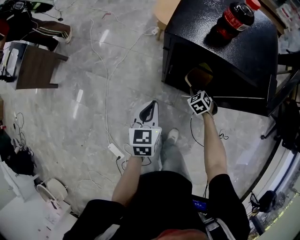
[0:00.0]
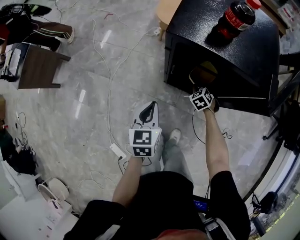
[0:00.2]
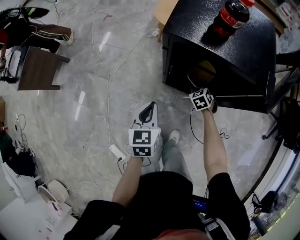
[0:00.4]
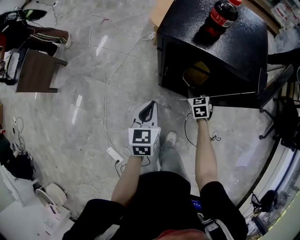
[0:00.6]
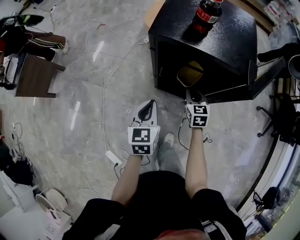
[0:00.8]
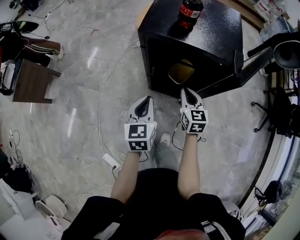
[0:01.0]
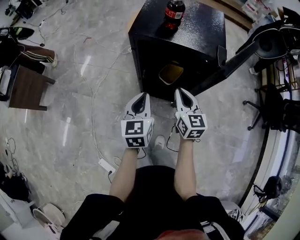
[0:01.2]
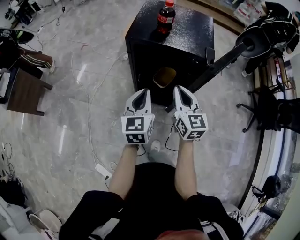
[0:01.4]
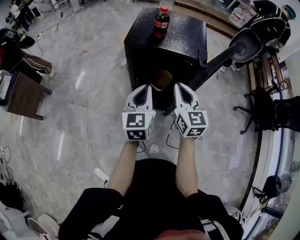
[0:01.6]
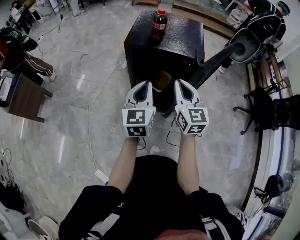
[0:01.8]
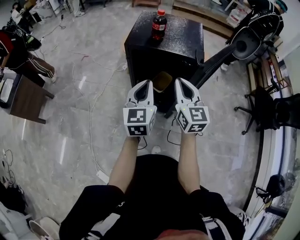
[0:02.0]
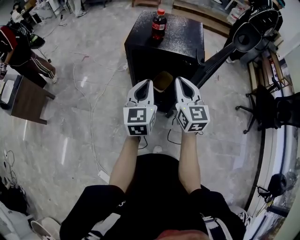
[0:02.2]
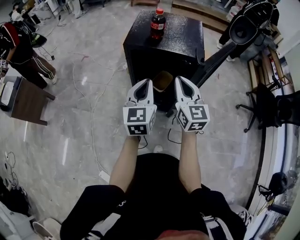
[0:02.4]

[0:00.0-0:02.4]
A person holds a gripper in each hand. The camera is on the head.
0:00.0 to 0:01.2: The right gripper heads upward, covering some 30 cm, points its fingers about 40 degrees further upward, and opens, then closes once more. The left gripper heads upward and to the right, covering roughly 10 cm.
0:01.2 to 0:02.4: The grippers both shift upward by approximately 10 cm.

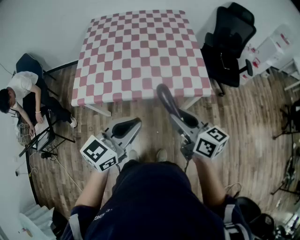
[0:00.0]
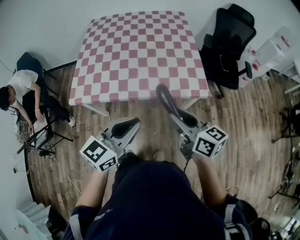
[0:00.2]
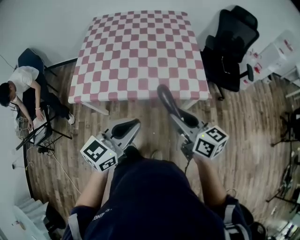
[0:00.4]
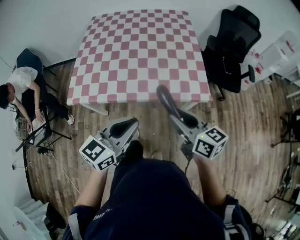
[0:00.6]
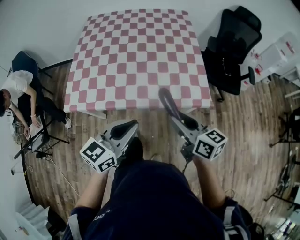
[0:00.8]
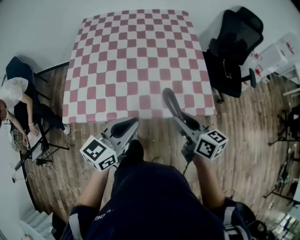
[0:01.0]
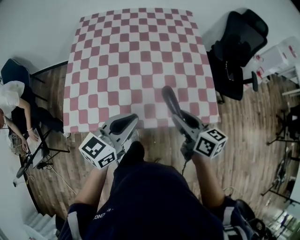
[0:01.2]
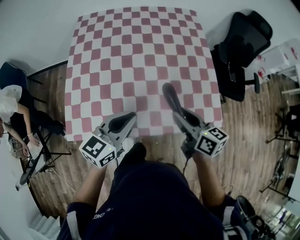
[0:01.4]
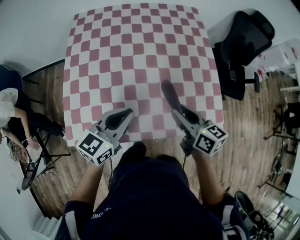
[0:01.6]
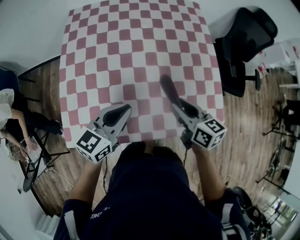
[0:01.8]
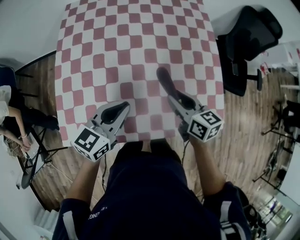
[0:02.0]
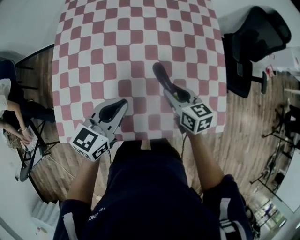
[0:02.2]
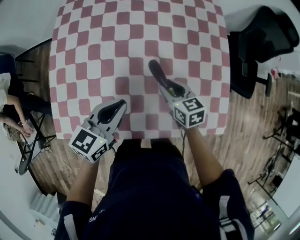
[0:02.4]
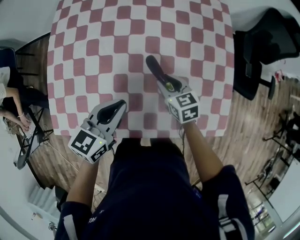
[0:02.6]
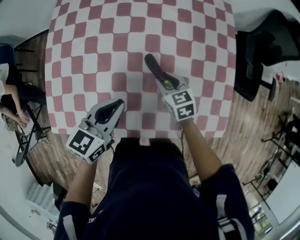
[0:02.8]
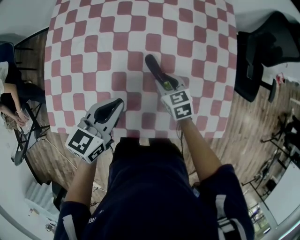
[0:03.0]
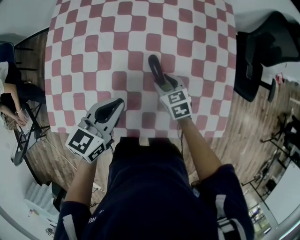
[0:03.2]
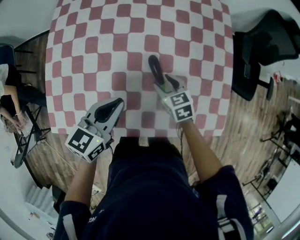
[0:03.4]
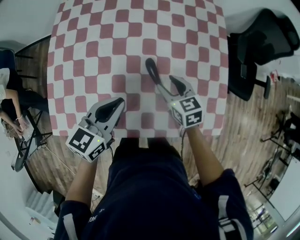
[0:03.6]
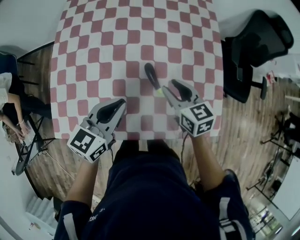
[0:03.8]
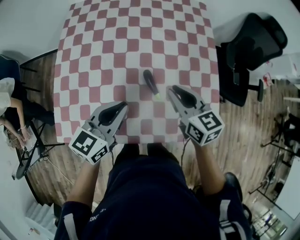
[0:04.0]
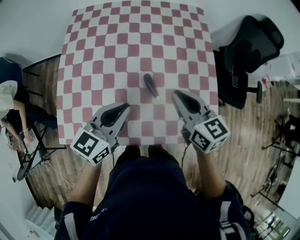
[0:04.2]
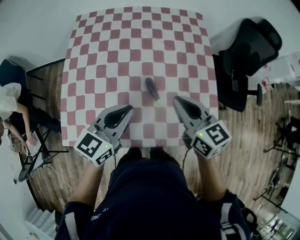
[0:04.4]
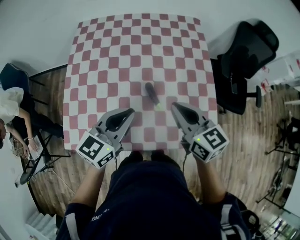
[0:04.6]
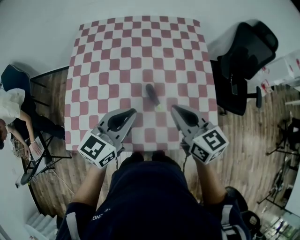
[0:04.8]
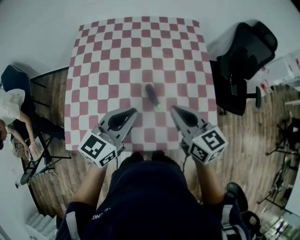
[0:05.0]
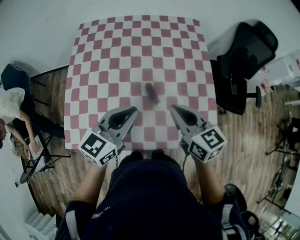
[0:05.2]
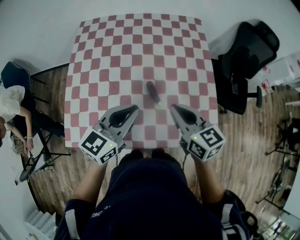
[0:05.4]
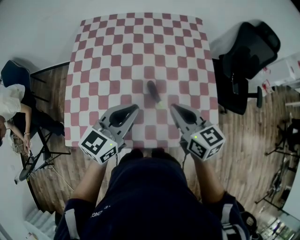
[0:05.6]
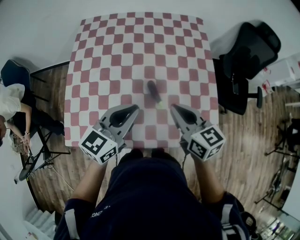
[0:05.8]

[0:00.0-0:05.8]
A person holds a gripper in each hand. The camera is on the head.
0:00.0 to 0:01.4: The left gripper is displaced forward and to the left by approximately 15 cm. Meanwhile the right gripper shifts approximately 15 cm forward, downward and to the left.
0:01.4 to 0:02.8: The right gripper shifts approximately 30 cm downward and forward, and changes its angle by about 40 degrees. Meanwhile the left gripper shifts about 15 cm downward and forward.
0:02.8 to 0:04.4: The right gripper travels upward by about 30 cm, changes its angle by some 30 degrees, and closes its fingers. The left gripper shifts approximately 15 cm upward.
0:04.4 to 0:05.8: There are only small adjustments of the grippers.

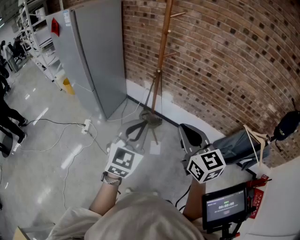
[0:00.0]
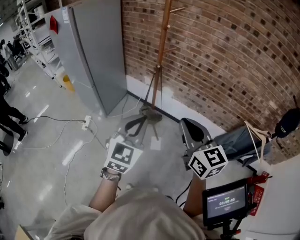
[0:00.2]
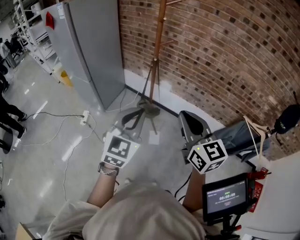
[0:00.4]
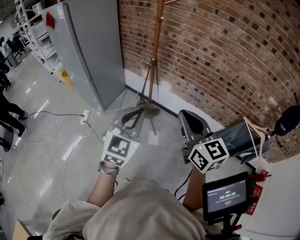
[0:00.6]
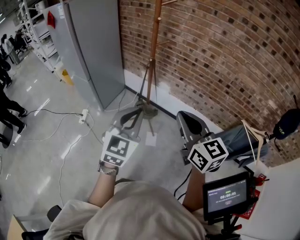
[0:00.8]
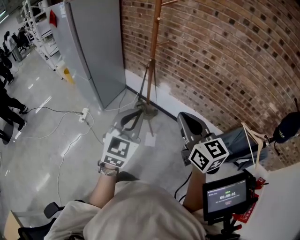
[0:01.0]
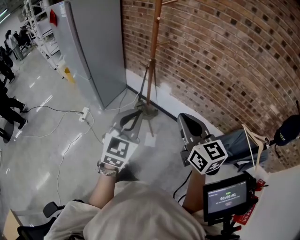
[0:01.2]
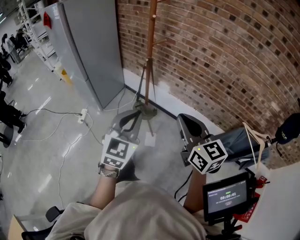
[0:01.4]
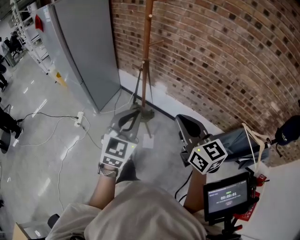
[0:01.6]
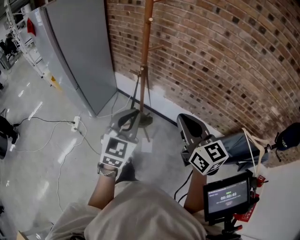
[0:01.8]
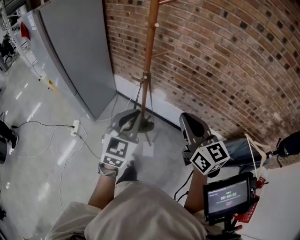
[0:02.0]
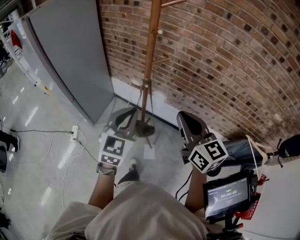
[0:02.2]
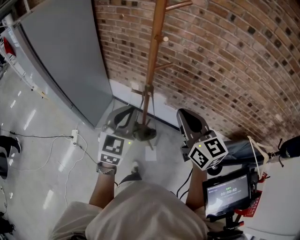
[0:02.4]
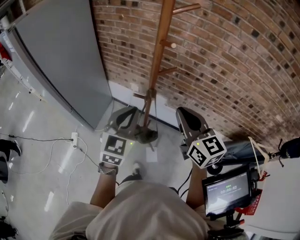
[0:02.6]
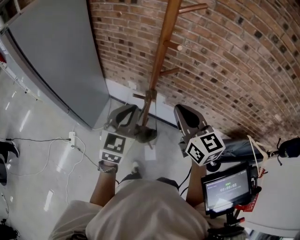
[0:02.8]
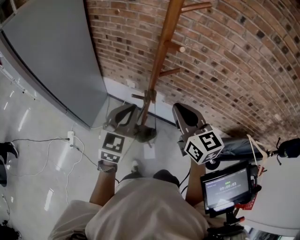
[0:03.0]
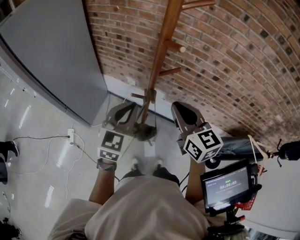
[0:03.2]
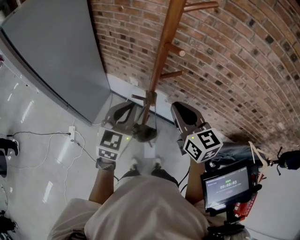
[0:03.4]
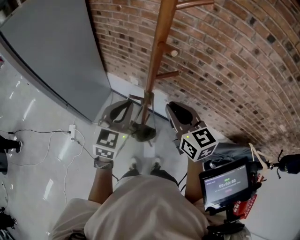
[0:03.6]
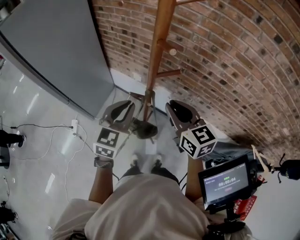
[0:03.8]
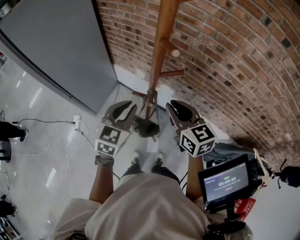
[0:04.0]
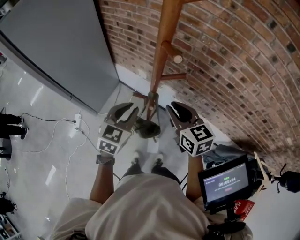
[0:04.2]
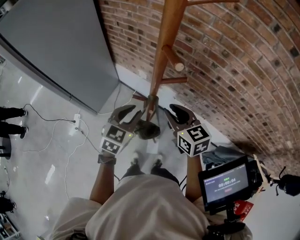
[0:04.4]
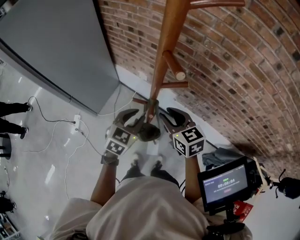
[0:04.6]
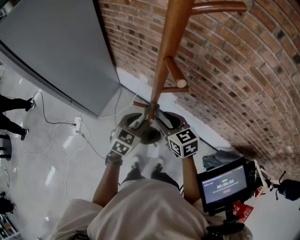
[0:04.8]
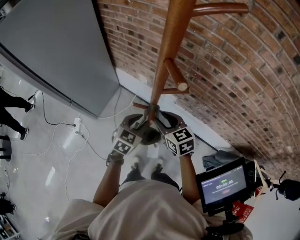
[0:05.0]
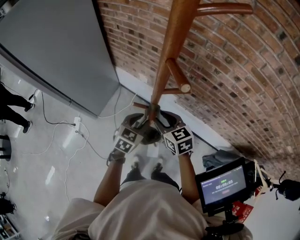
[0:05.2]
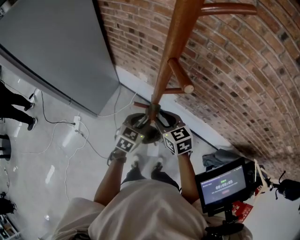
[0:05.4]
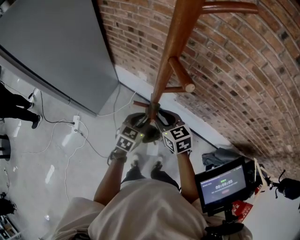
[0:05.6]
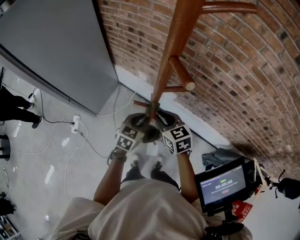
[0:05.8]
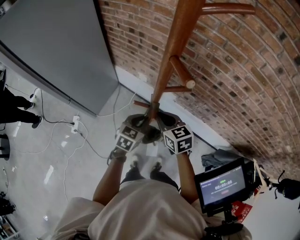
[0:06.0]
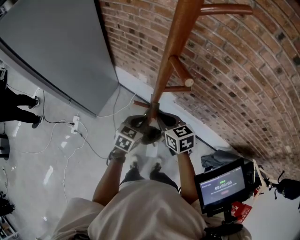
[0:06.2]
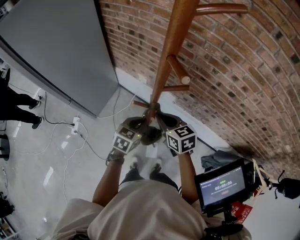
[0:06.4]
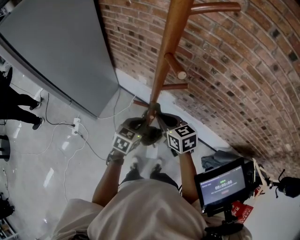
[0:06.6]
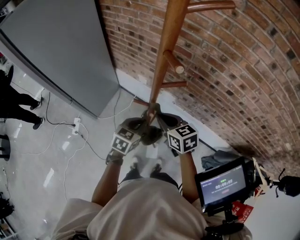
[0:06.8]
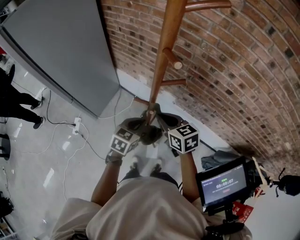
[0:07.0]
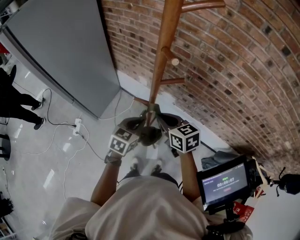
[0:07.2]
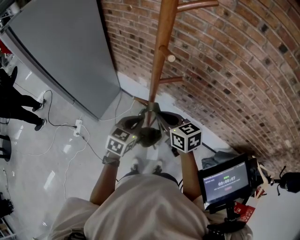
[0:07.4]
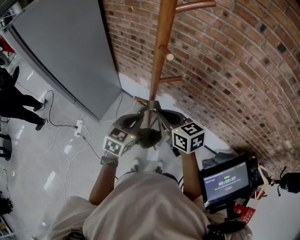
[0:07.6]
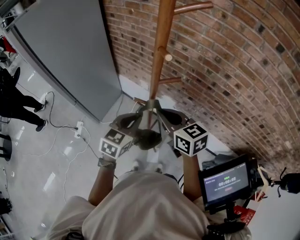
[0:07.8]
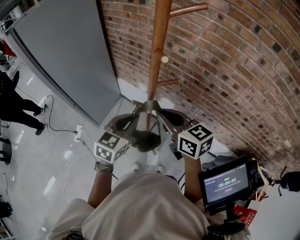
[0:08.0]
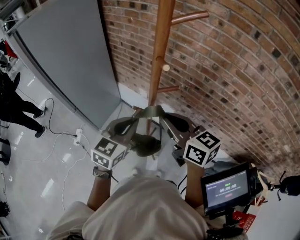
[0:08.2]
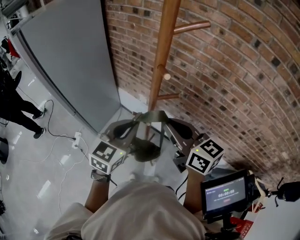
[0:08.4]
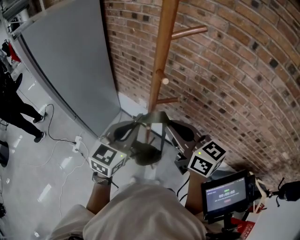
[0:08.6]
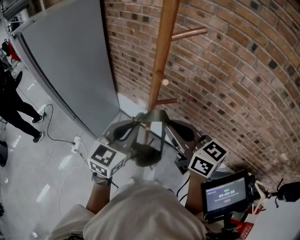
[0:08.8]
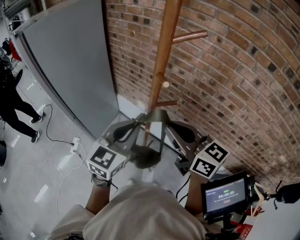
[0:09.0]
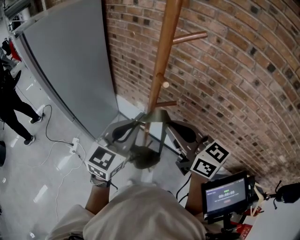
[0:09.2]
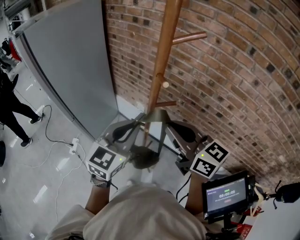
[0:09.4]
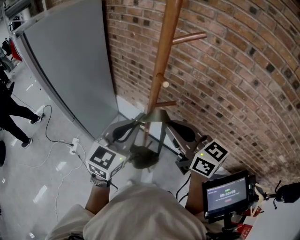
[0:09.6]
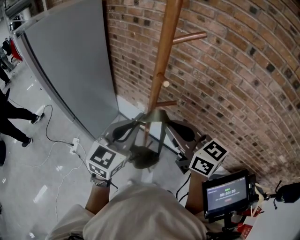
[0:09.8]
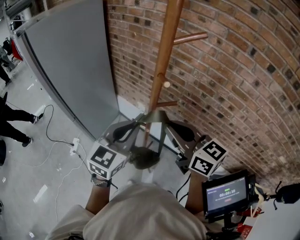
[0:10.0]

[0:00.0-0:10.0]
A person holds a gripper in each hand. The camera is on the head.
0:00.0 to 0:01.4: Both grippers move to the right, about 10 cm.
0:01.4 to 0:02.8: The grippers both shift forward by roughly 30 cm.
0:02.8 to 0:04.2: Both grippers travel together downward and forward, some 10 cm.
0:04.2 to 0:05.8: The grippers both shift downward by some 10 cm.
0:05.8 to 0:07.2: The left gripper ends up approximately 5 cm from where it was, while the right gripper changes place by some 5 cm.
0:07.2 to 0:08.6: The grippers both shift upward by roughly 20 cm. The left gripper turns by roughly 20 degrees. Meanwhile the right gripper swivels roughly 20 degrees.
0:08.6 to 0:10.0: The grippers make only small movements.

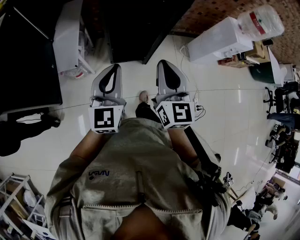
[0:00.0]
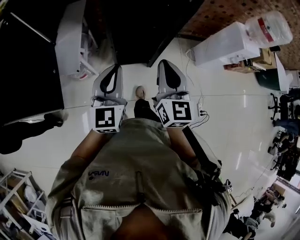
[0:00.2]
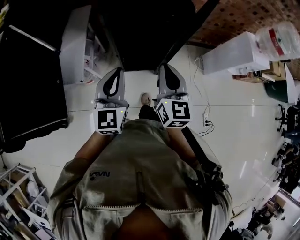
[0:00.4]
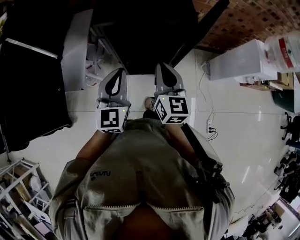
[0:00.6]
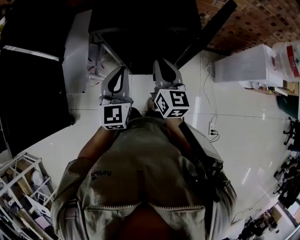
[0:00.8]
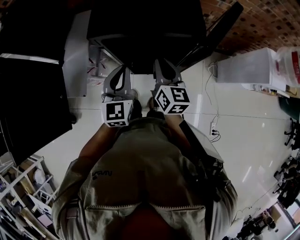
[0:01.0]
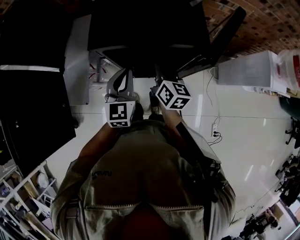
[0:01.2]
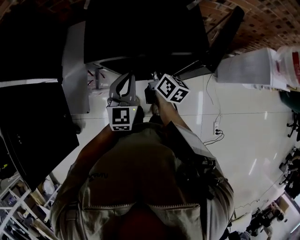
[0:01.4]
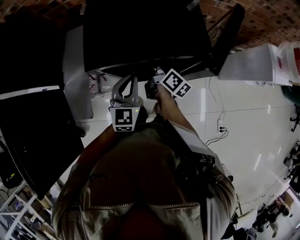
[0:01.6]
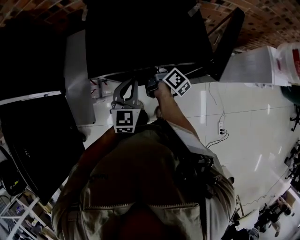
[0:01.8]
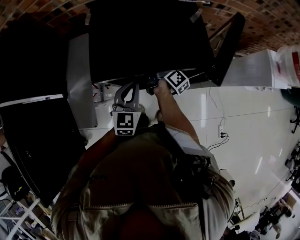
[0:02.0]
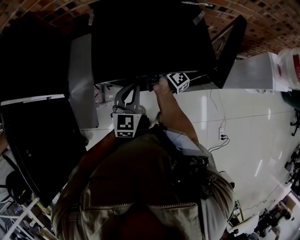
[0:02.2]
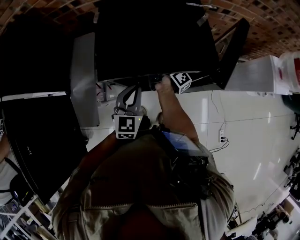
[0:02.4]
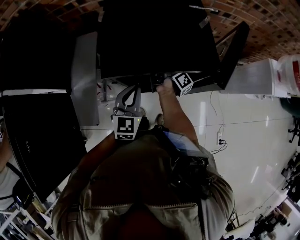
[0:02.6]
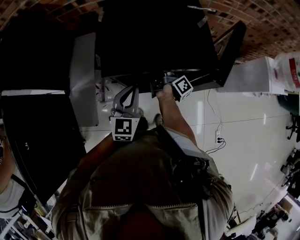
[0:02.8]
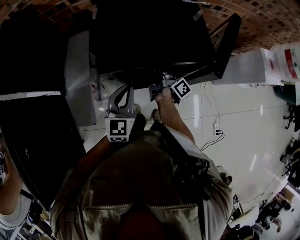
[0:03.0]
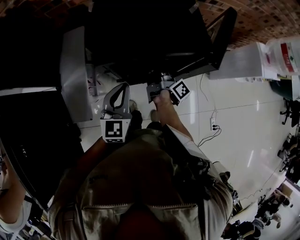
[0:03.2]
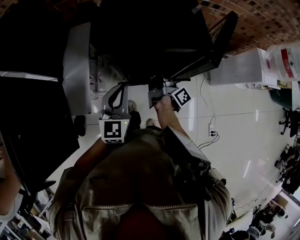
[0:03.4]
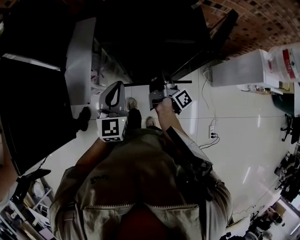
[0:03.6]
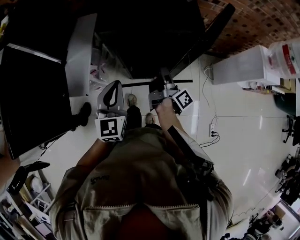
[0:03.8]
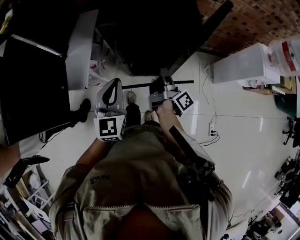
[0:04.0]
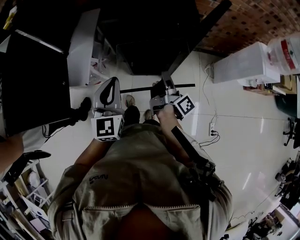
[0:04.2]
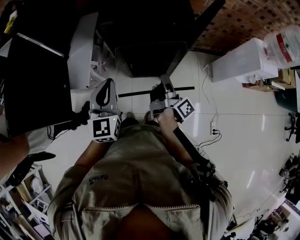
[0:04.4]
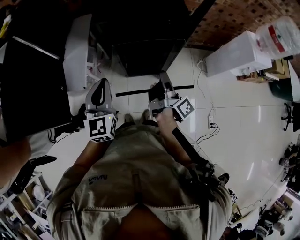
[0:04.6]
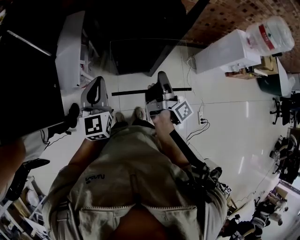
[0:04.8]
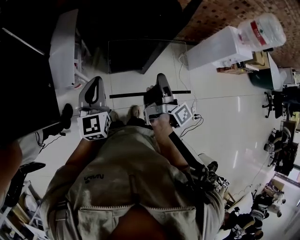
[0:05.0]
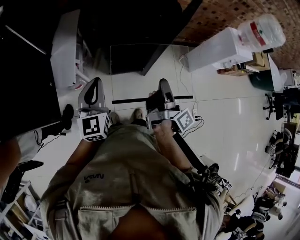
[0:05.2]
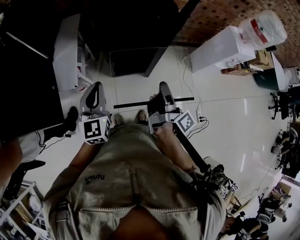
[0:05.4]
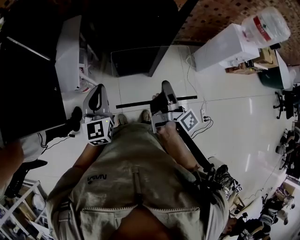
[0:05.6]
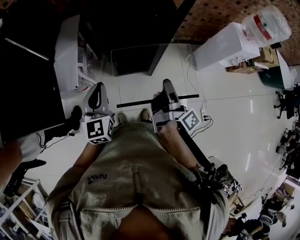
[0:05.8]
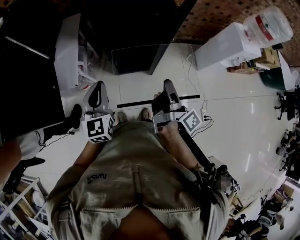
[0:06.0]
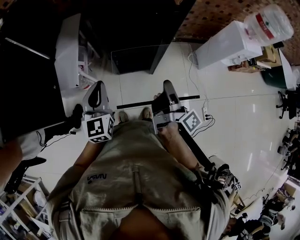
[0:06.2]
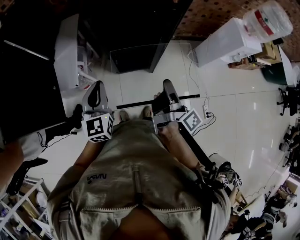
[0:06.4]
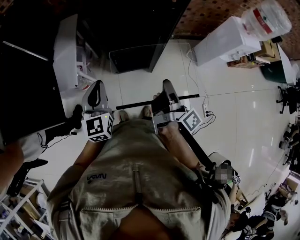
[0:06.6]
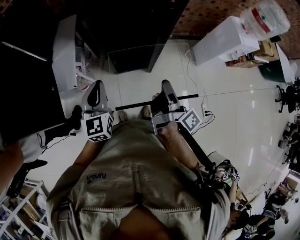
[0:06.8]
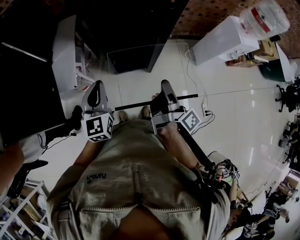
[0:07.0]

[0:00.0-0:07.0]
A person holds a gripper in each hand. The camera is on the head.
0:00.0 to 0:01.4: The left gripper changes place by about 35 cm.
0:02.8 to 0:04.2: The left gripper changes place by some 20 cm.
0:04.2 to 0:05.6: The left gripper changes place by approximately 5 cm.
